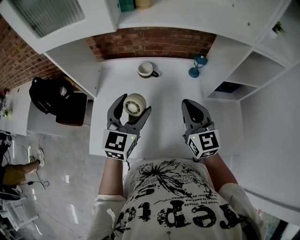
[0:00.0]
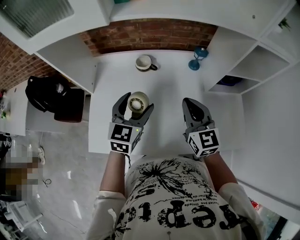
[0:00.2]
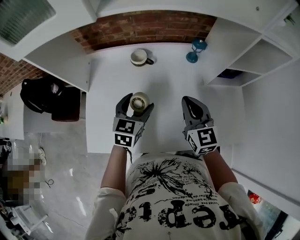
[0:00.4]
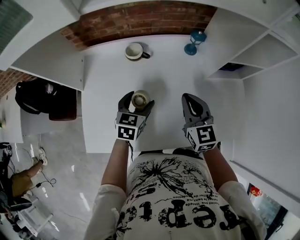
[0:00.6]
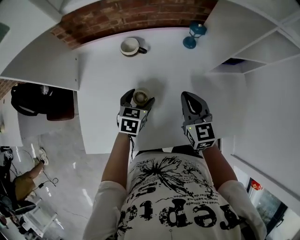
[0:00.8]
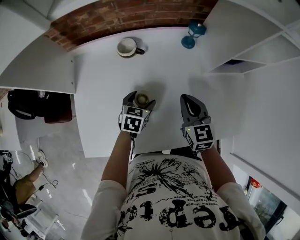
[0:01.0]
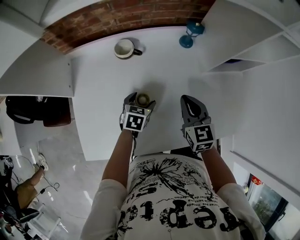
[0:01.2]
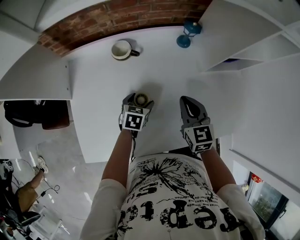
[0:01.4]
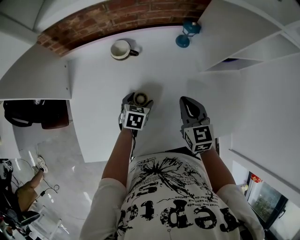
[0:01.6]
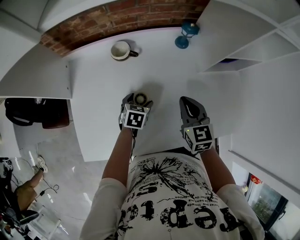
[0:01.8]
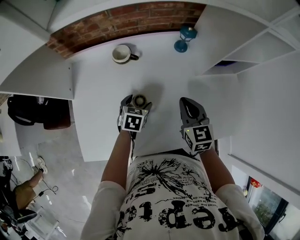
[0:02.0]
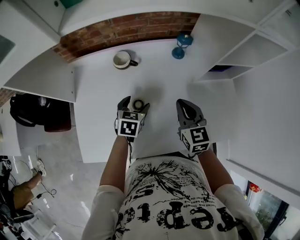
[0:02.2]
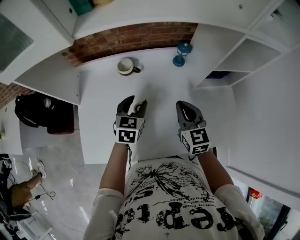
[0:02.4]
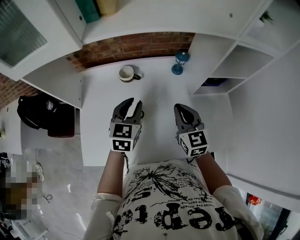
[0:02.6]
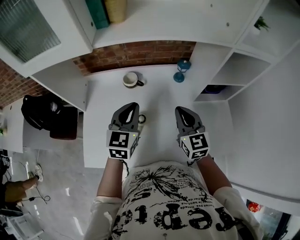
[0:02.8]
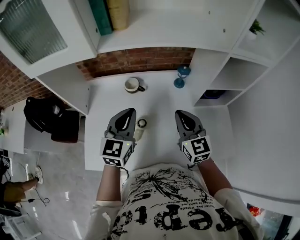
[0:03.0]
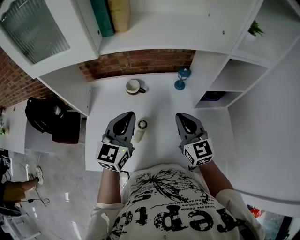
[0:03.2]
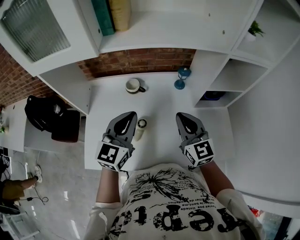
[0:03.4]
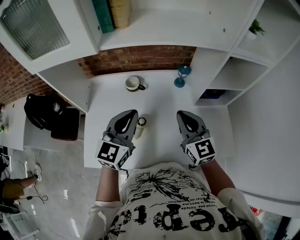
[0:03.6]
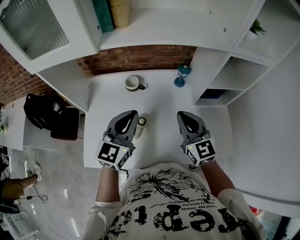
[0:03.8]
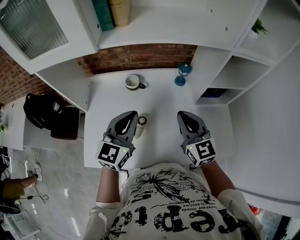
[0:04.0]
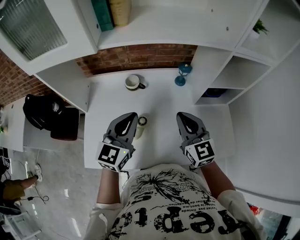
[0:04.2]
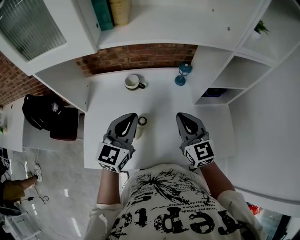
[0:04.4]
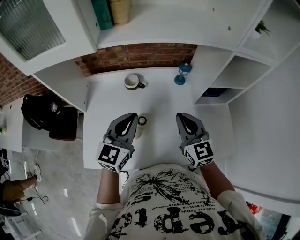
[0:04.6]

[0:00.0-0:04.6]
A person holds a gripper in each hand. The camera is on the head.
0.0 to 1.6 s: The left gripper is displaced downward by approximately 30 cm, and points its fingers approximately 40 degrees further downward; the right gripper goes some 15 cm downward, and rotates roughly 30 degrees.
1.6 to 3.0 s: The left gripper shifts approximately 35 cm upward, tilts its fingers about 40 degrees upward, and closes its fingers. Meanwhile the right gripper moves upward, approximately 15 cm, and swivels approximately 20 degrees.
3.0 to 4.6 s: The grippers make only small movements.

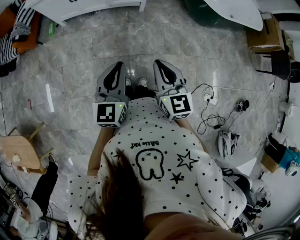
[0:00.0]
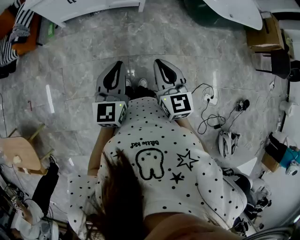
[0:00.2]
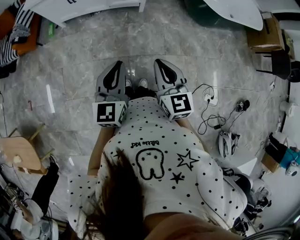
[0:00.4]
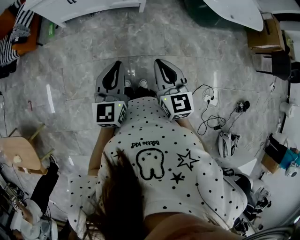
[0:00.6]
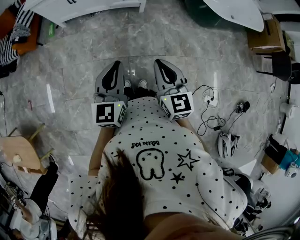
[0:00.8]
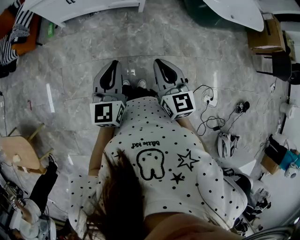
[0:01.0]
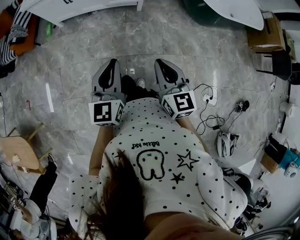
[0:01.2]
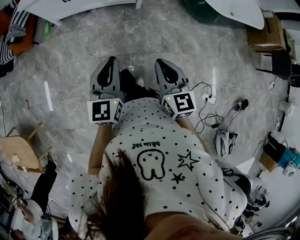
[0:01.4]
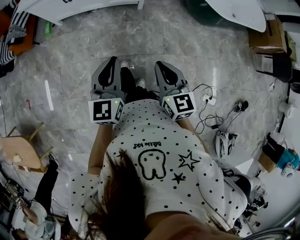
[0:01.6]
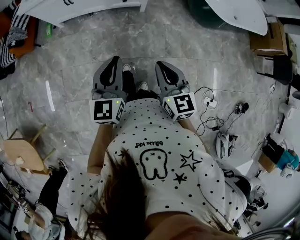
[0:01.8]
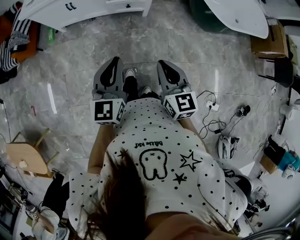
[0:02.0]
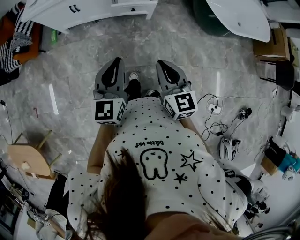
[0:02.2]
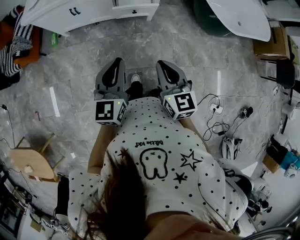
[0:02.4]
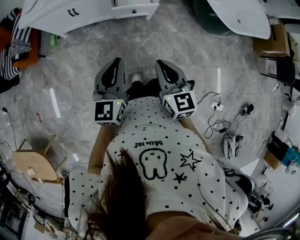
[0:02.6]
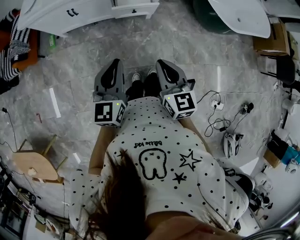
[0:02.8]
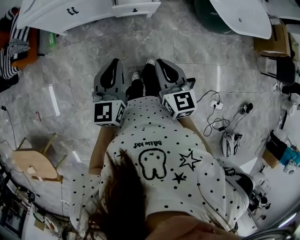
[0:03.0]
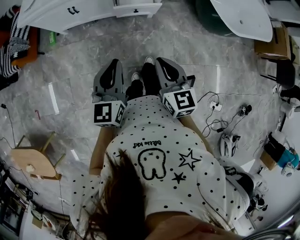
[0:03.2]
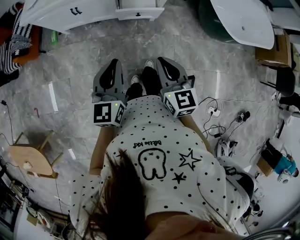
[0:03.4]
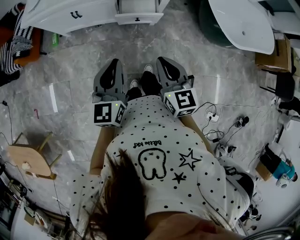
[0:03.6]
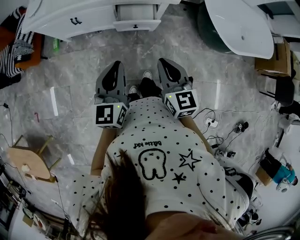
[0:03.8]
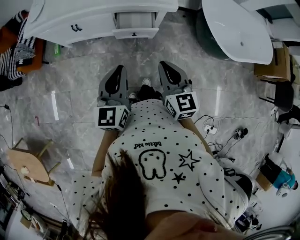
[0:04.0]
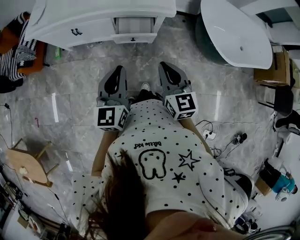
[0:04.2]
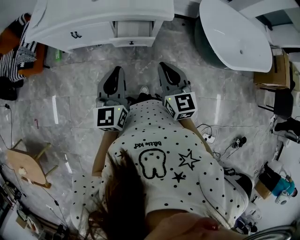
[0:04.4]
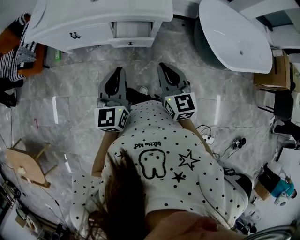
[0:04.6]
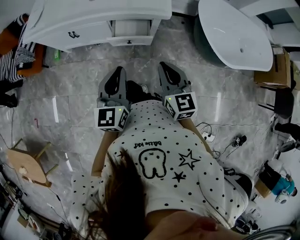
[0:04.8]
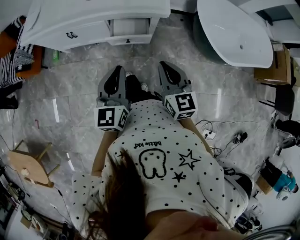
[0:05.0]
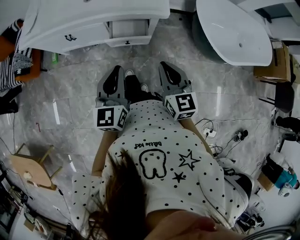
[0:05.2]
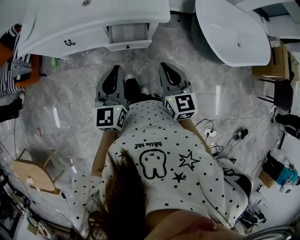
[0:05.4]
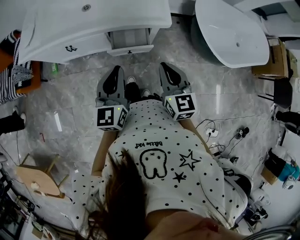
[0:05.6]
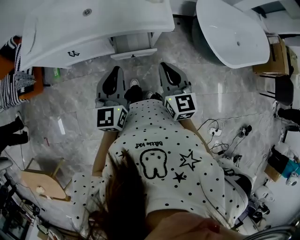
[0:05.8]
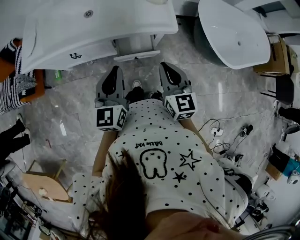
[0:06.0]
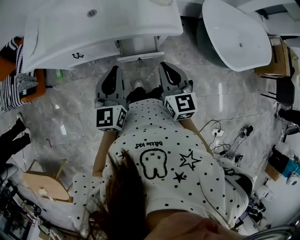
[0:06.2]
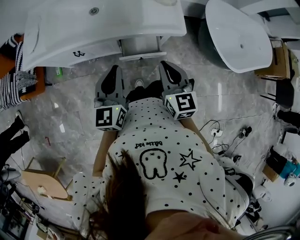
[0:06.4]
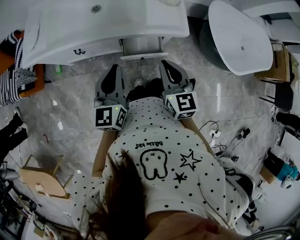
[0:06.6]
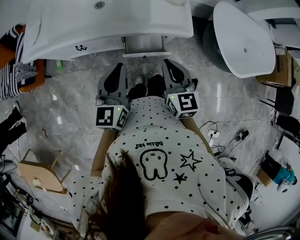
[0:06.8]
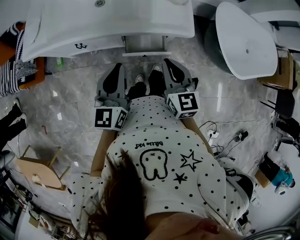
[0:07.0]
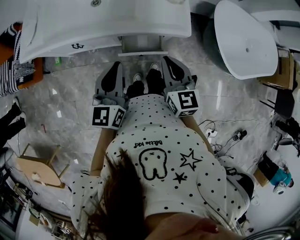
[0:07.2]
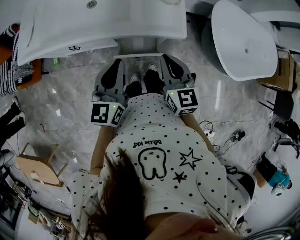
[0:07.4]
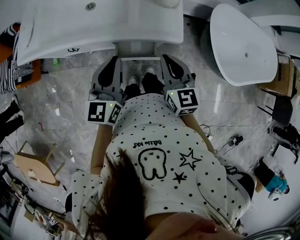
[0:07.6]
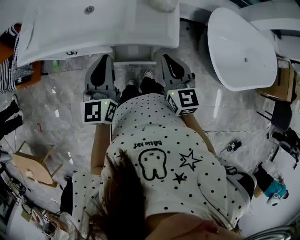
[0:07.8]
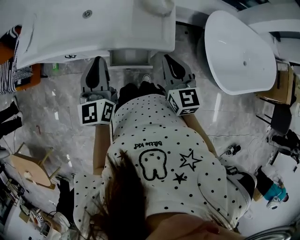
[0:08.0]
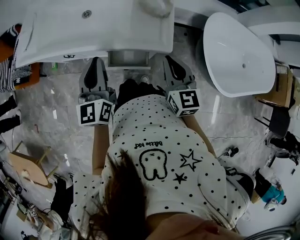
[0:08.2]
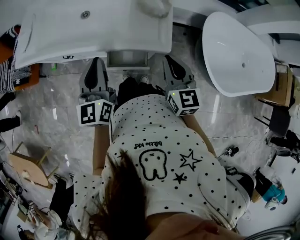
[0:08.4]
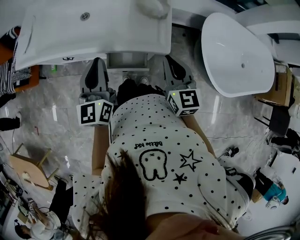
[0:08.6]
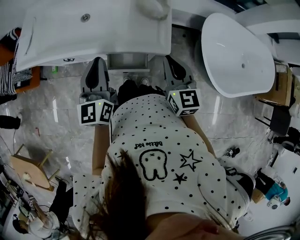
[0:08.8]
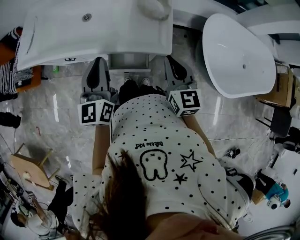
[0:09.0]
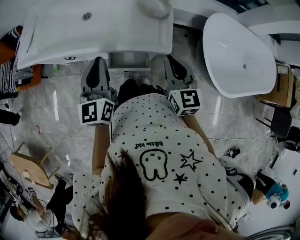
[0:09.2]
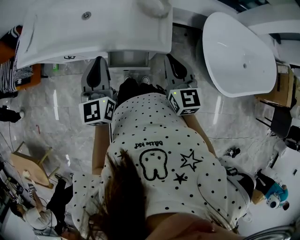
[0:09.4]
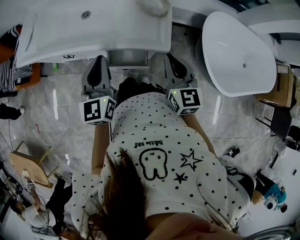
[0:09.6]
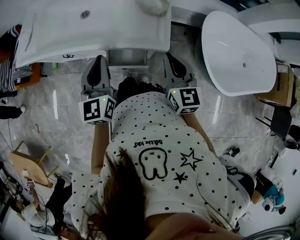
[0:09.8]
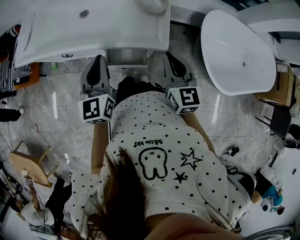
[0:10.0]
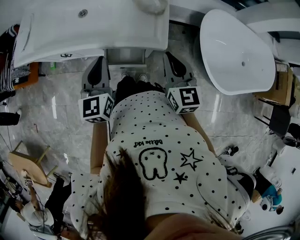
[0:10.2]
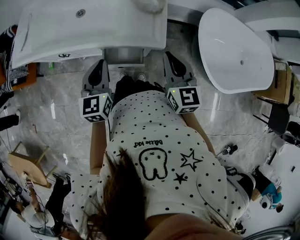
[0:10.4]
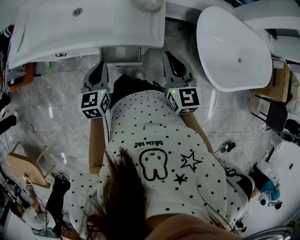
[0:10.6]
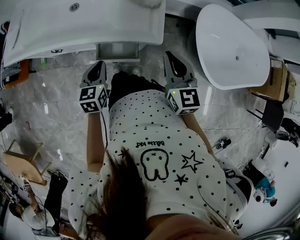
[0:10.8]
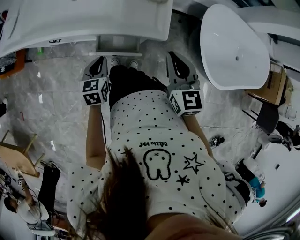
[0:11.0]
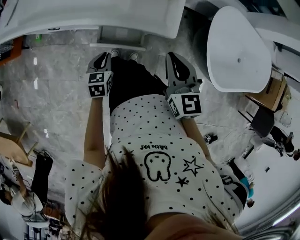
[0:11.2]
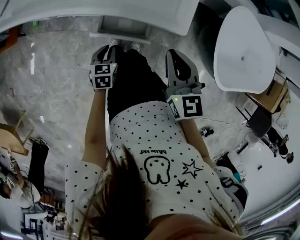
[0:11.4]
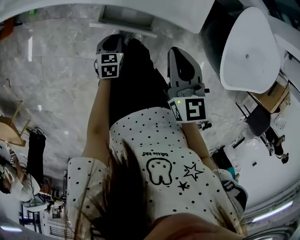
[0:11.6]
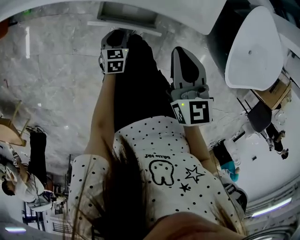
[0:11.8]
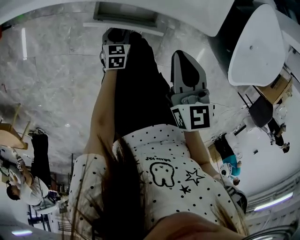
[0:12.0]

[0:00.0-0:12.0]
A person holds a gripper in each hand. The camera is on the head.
0.0 to 1.6 s: The grippers both shift forward by roughly 5 cm.
1.6 to 3.0 s: Both grippers move forward and to the left, roughly 20 cm.
3.0 to 4.4 s: Both grippers move forward and to the right, roughly 15 cm.
4.4 to 6.0 s: The two grippers go approximately 15 cm forward.
6.0 to 7.6 s: Both grippers move forward, about 10 cm.
7.6 to 9.0 s: The right gripper travels to the right by approximately 10 cm.
9.0 to 10.4 s: The left gripper heads downward, covering approximately 10 cm.
10.4 to 12.0 s: The right gripper moves downward and to the left, about 20 cm, and turns by about 20 degrees; the left gripper goes roughly 40 cm downward, angles its fingers downward, by some 30 degrees, and opens its fingers.

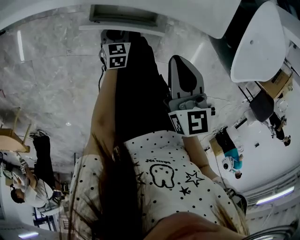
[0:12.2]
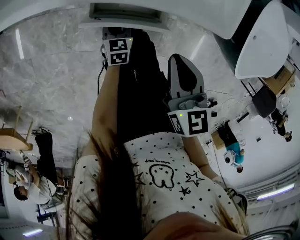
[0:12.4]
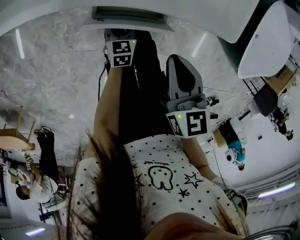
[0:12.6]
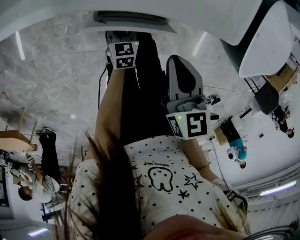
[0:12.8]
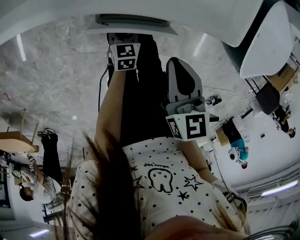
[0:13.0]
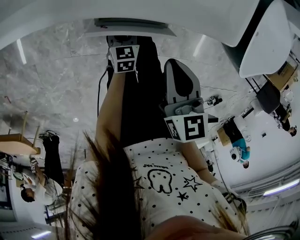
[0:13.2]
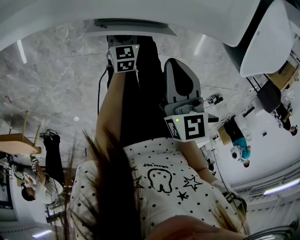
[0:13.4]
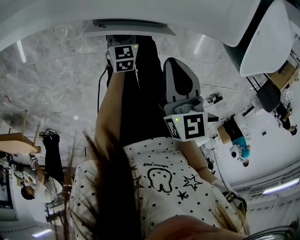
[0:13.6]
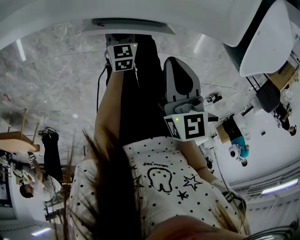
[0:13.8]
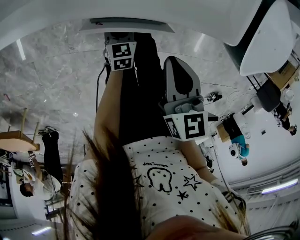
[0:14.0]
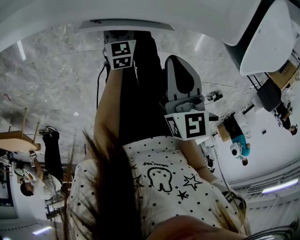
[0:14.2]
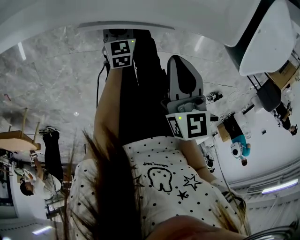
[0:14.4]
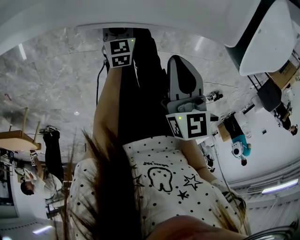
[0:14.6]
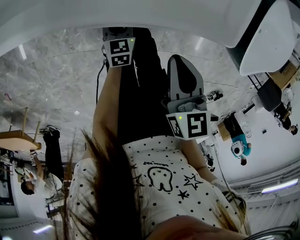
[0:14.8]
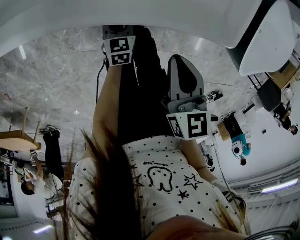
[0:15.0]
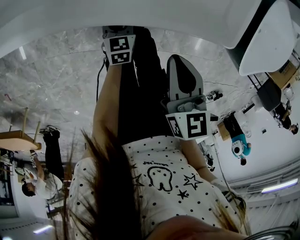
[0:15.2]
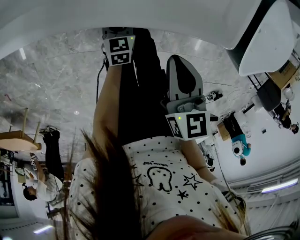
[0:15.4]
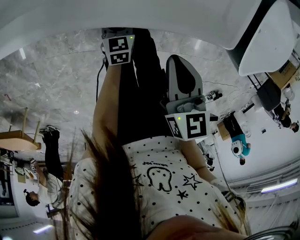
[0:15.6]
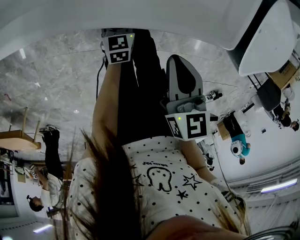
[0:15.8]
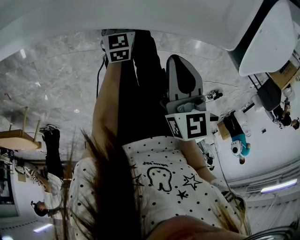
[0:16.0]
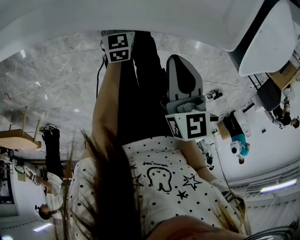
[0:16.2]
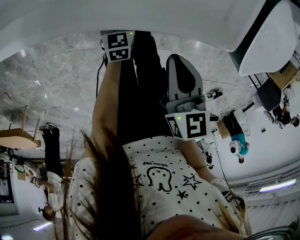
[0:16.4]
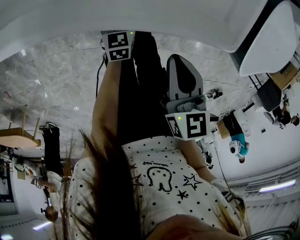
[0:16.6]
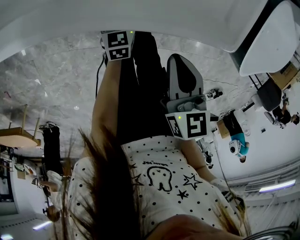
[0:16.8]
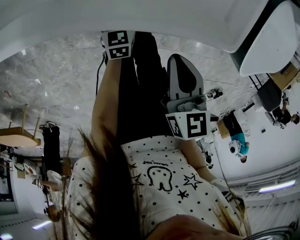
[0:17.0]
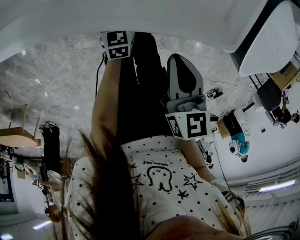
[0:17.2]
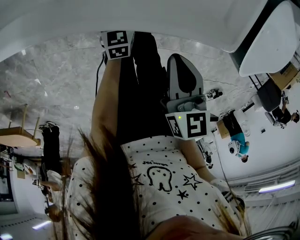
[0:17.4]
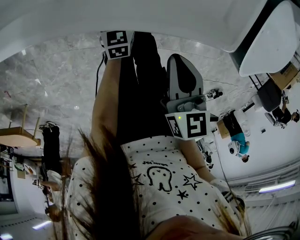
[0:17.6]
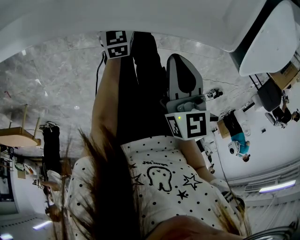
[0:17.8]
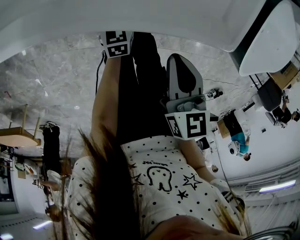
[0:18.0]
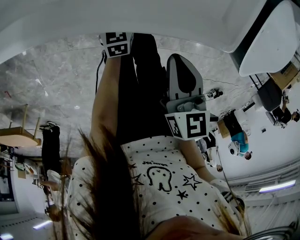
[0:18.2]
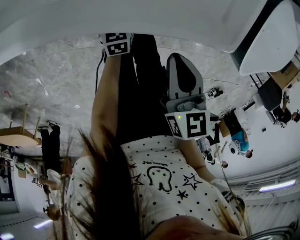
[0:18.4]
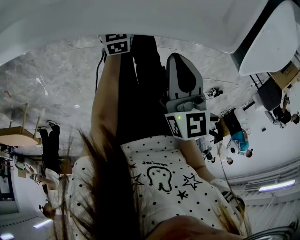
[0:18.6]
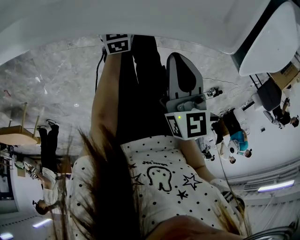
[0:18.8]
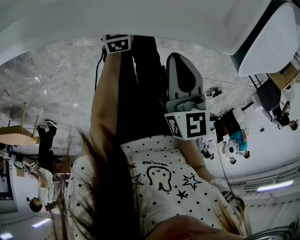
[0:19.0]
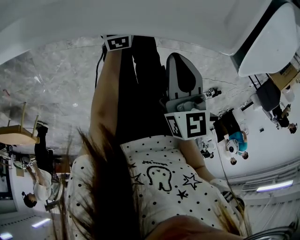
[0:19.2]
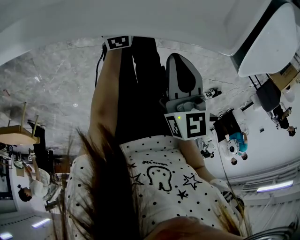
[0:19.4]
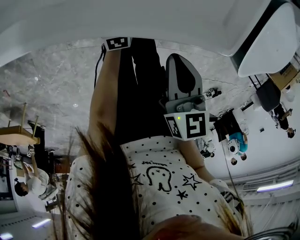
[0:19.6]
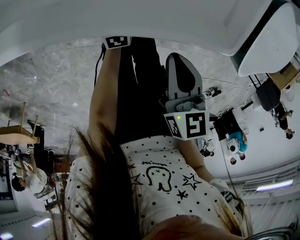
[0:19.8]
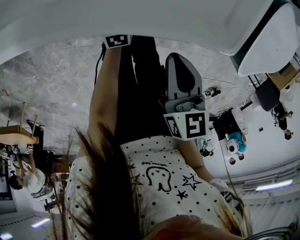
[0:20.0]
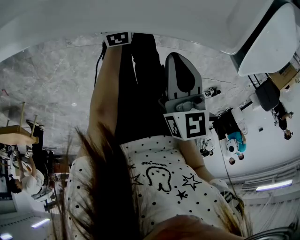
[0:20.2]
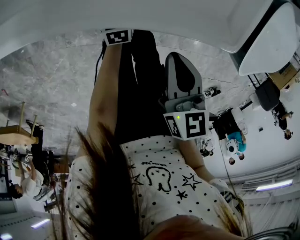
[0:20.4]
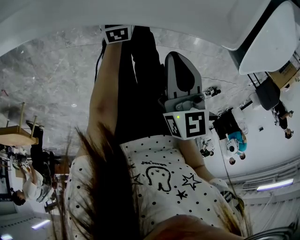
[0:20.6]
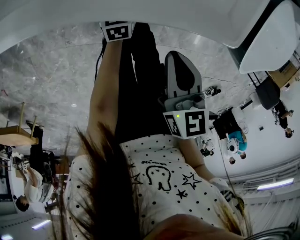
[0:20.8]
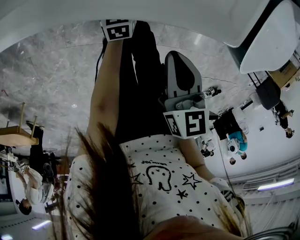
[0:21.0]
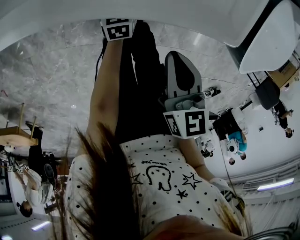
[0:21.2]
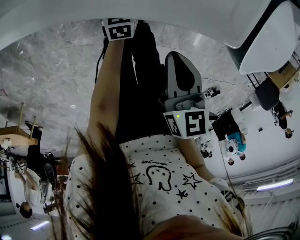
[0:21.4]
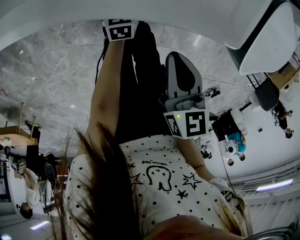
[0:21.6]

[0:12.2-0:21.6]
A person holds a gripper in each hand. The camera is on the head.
12.2 to 15.4 s: The grippers stay close to where they were, moving slightly.
15.4 to 18.4 s: The grippers stay close to where they were, moving slightly.
18.4 to 21.6 s: The grippers make only small movements.
